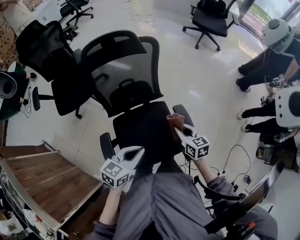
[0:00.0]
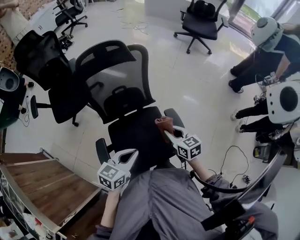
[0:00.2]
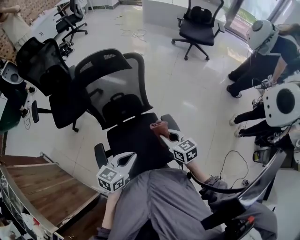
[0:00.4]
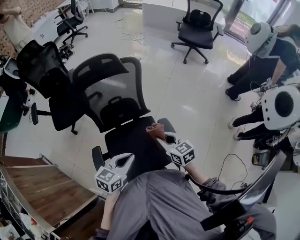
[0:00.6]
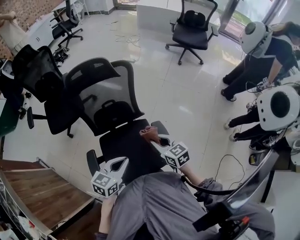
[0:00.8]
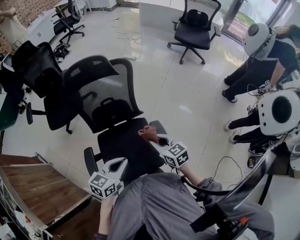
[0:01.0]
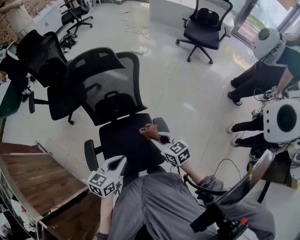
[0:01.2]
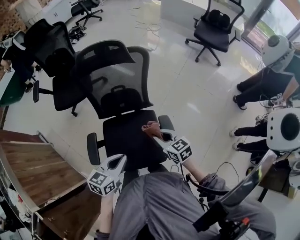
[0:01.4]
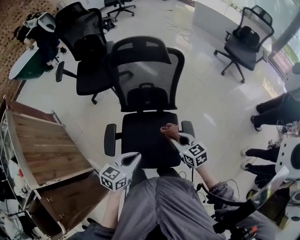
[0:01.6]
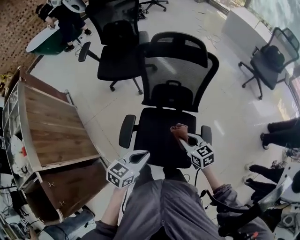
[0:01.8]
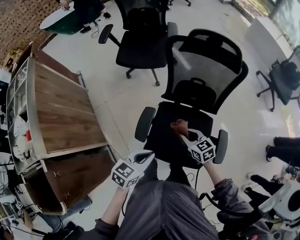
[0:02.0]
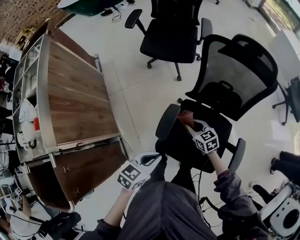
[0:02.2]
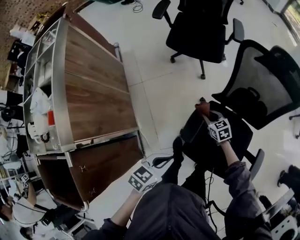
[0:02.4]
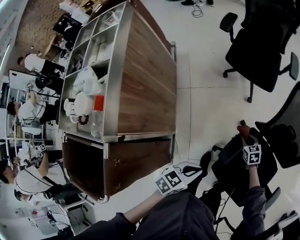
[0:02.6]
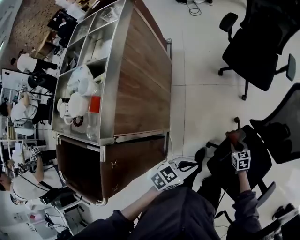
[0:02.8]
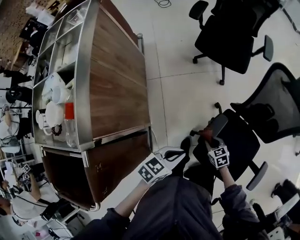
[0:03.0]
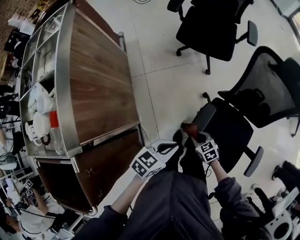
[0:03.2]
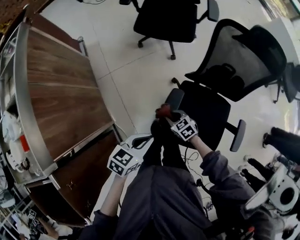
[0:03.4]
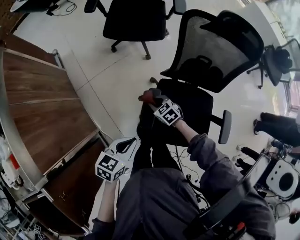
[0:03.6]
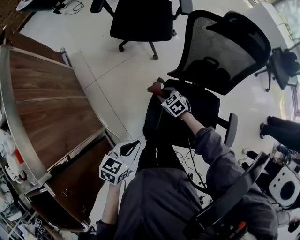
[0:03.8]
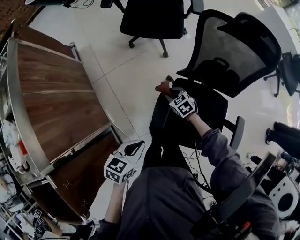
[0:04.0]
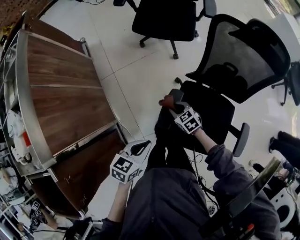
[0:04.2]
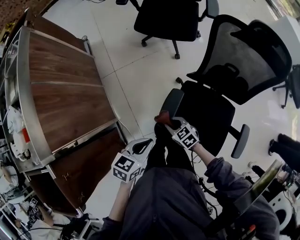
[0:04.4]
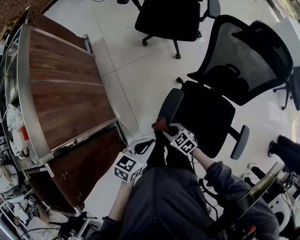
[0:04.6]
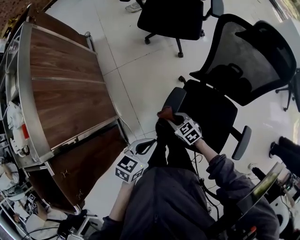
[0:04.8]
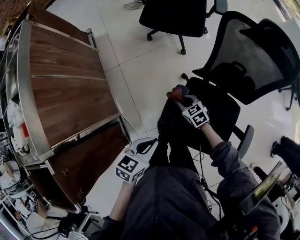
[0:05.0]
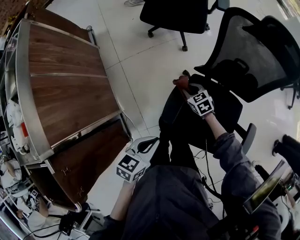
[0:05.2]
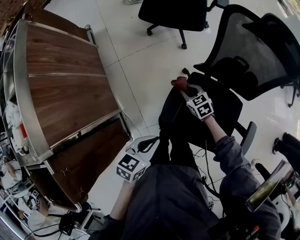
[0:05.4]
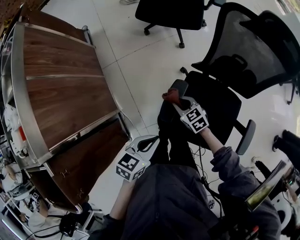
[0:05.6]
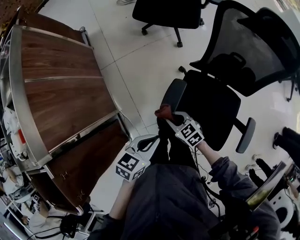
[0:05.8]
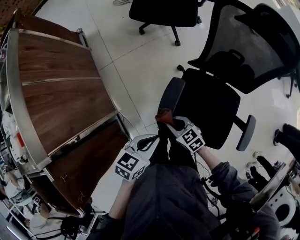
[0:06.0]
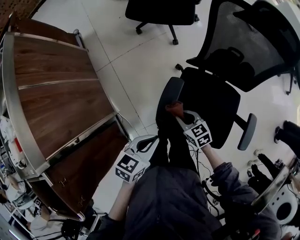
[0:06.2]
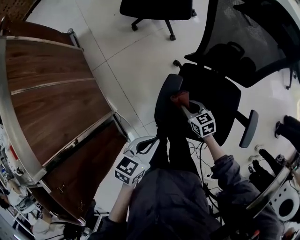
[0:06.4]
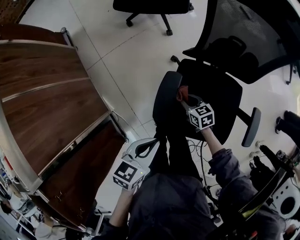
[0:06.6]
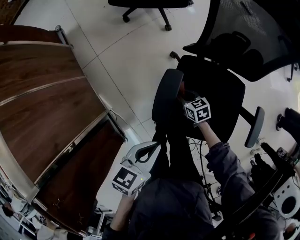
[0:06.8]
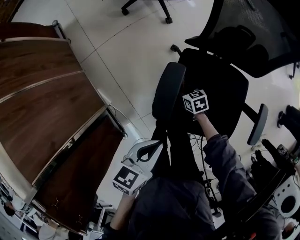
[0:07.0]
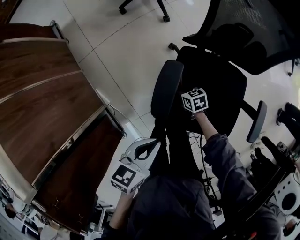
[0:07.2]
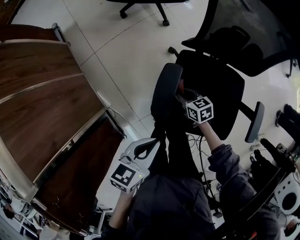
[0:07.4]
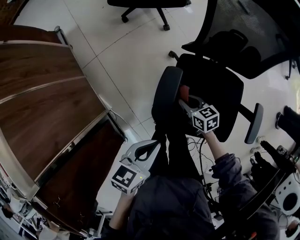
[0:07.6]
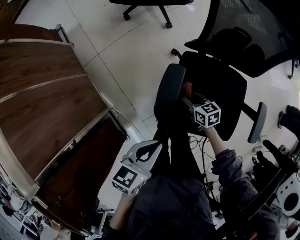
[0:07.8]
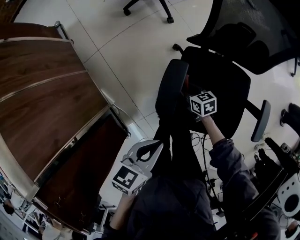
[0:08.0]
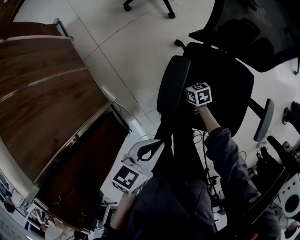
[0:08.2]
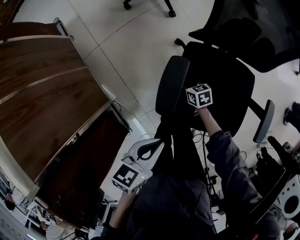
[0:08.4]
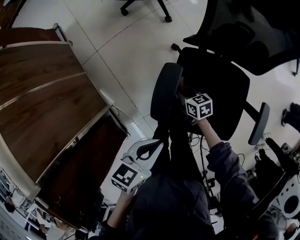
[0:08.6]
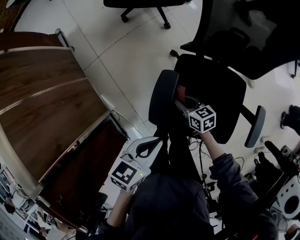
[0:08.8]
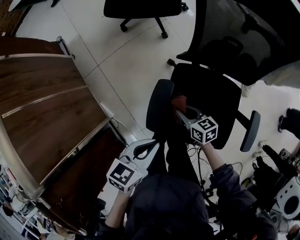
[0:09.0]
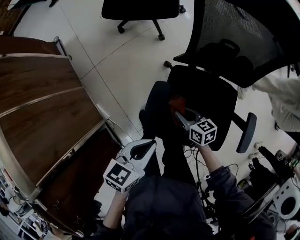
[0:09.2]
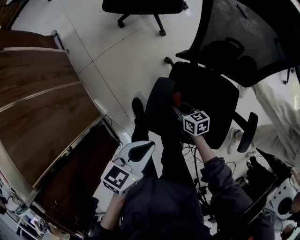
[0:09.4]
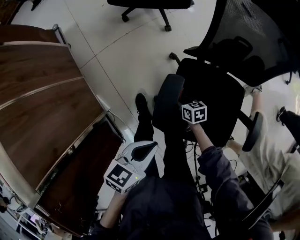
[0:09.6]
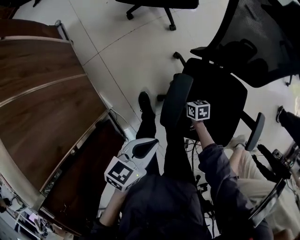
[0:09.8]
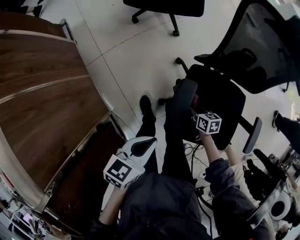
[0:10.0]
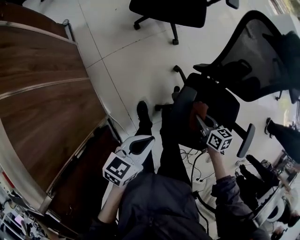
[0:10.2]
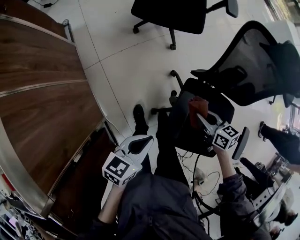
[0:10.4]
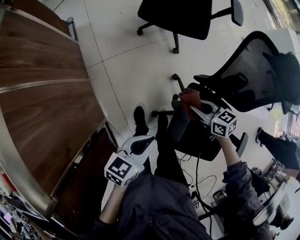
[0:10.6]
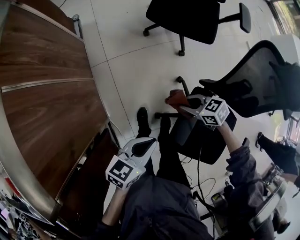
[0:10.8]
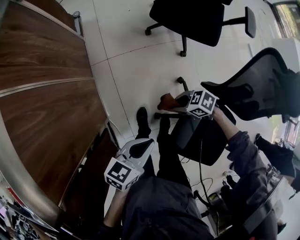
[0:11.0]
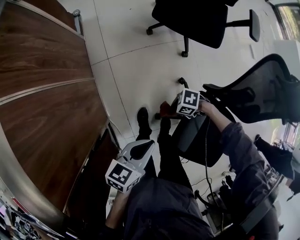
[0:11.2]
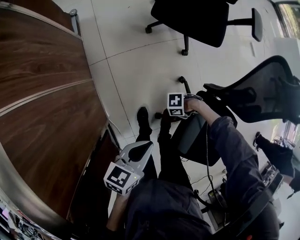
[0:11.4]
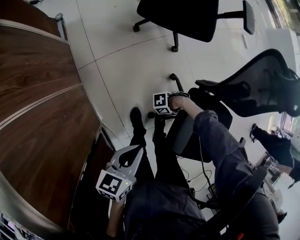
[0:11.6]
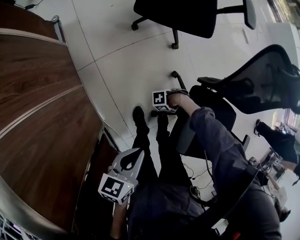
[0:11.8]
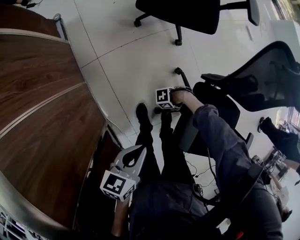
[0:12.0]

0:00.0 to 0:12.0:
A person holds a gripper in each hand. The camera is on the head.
0:00.0 to 0:01.6: The left gripper swivels some 20 degrees, while the right gripper turns by some 30 degrees.
0:01.6 to 0:03.0: The right gripper shifts by roughly 50 cm, and turns by some 40 degrees. Meanwhile the left gripper moves roughly 40 cm, and changes its angle by roughly 20 degrees.
0:03.0 to 0:04.4: The left gripper heads to the right, covering approximately 5 cm, while the right gripper moves roughly 15 cm forward and comes back.
0:06.0 to 0:07.6: The right gripper travels downward, to the right and forward by some 15 cm, and swivels some 30 degrees.
0:07.6 to 0:09.0: The left gripper moves about 5 cm. The right gripper goes downward and returns, some 15 cm each way.
0:09.0 to 0:10.4: The right gripper goes approximately 10 cm upward, forward and to the left; the left gripper shifts roughly 15 cm to the left.
0:10.4 to 0:12.0: The left gripper moves some 10 cm, while the right gripper shifts about 30 cm downward, and turns by approximately 110 degrees.

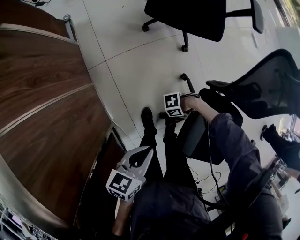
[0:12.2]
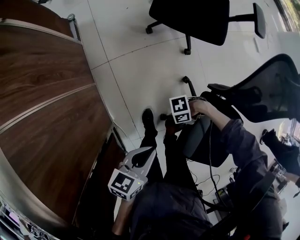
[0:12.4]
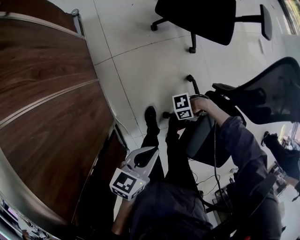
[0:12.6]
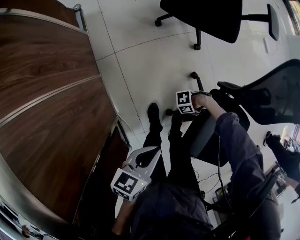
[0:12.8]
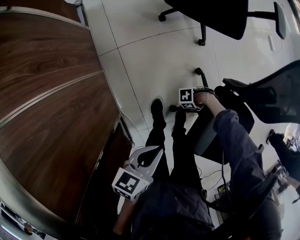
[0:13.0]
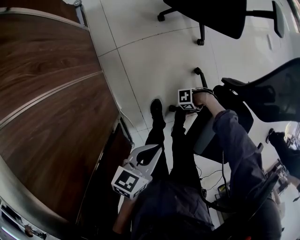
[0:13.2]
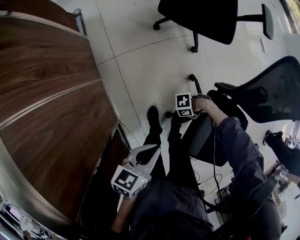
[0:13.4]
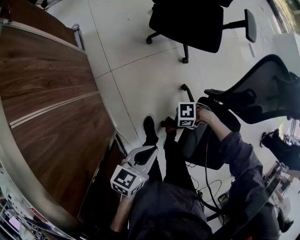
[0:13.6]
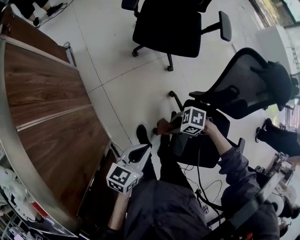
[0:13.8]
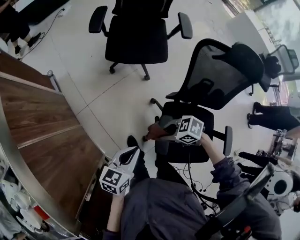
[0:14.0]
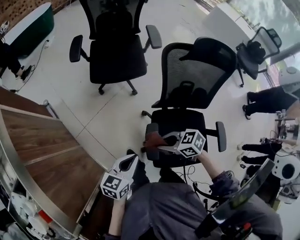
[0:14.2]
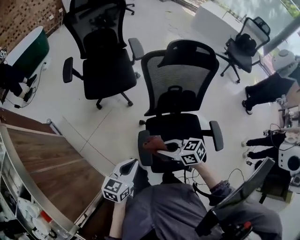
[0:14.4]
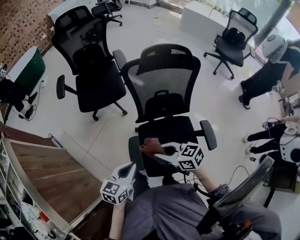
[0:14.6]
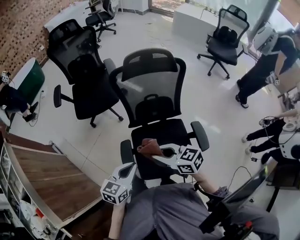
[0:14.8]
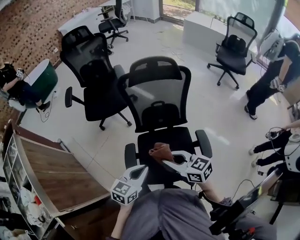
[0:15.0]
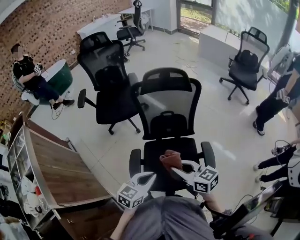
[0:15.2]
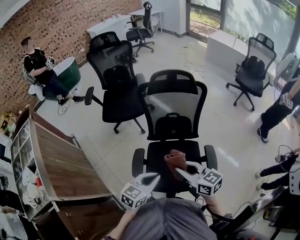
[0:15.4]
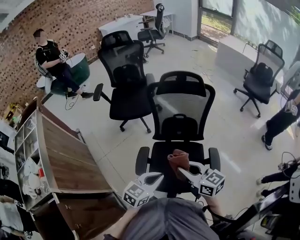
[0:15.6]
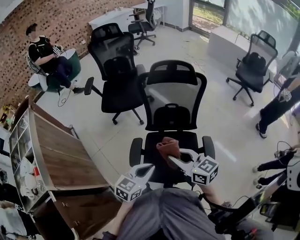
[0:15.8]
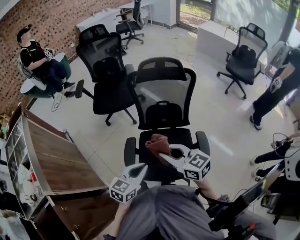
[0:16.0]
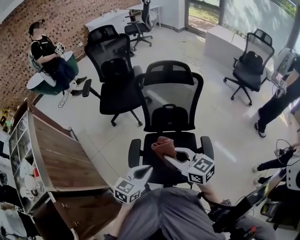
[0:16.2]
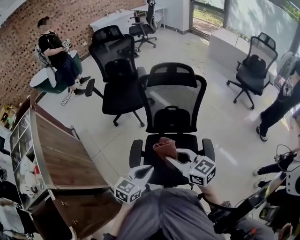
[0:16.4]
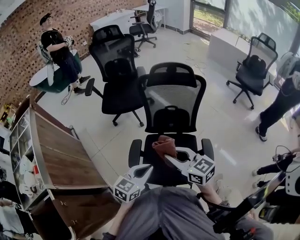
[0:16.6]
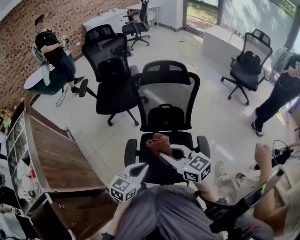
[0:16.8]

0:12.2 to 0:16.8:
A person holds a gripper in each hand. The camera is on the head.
0:12.2 to 0:13.8: The right gripper goes up and down, about 30 cm each way, reversing 2 times, and rotates roughly 40 degrees. Meanwhile the left gripper heads upward, covering about 5 cm.
0:13.8 to 0:15.2: The two grippers travel together, roughly 40 cm. The right gripper tips its fingers upward by approximately 30 degrees. The left gripper changes its angle by roughly 30 degrees.
0:15.2 to 0:16.8: The right gripper shifts about 5 cm upward.

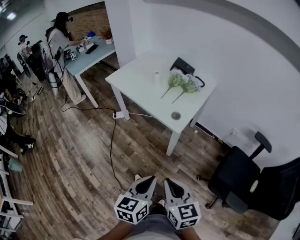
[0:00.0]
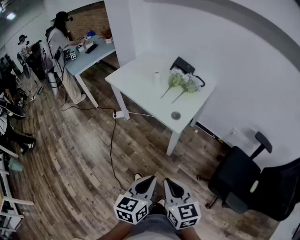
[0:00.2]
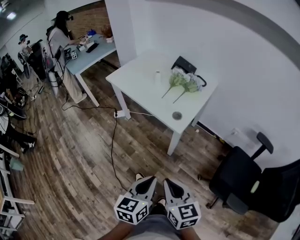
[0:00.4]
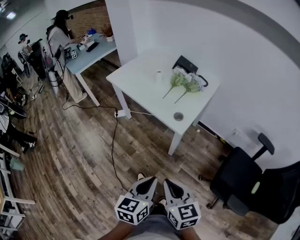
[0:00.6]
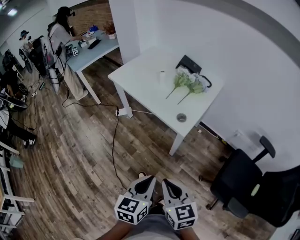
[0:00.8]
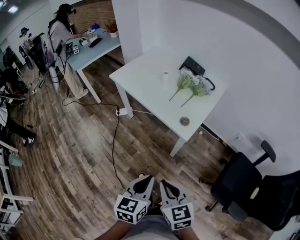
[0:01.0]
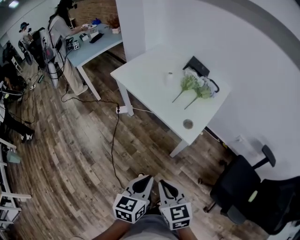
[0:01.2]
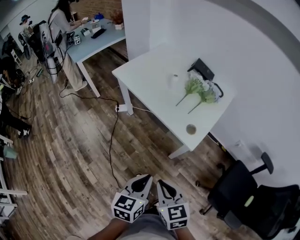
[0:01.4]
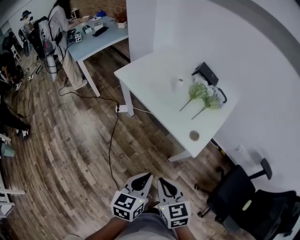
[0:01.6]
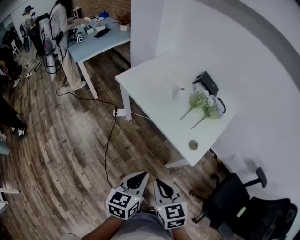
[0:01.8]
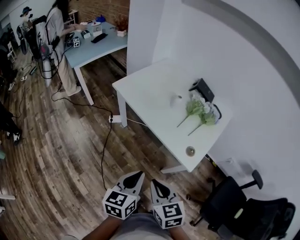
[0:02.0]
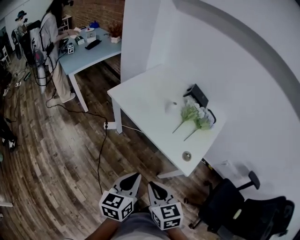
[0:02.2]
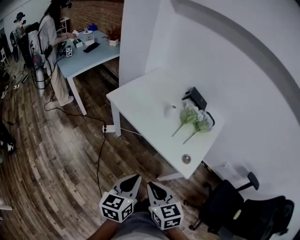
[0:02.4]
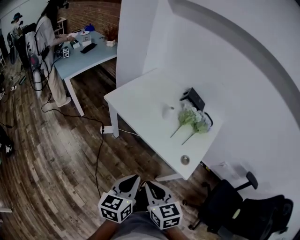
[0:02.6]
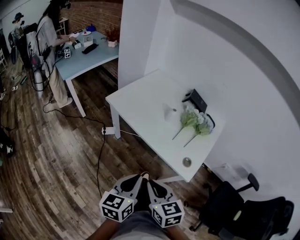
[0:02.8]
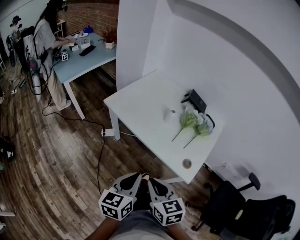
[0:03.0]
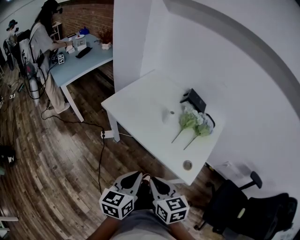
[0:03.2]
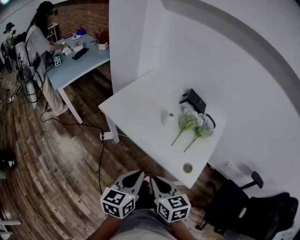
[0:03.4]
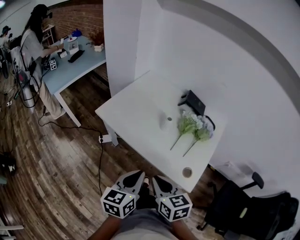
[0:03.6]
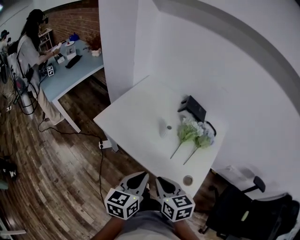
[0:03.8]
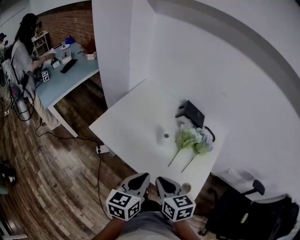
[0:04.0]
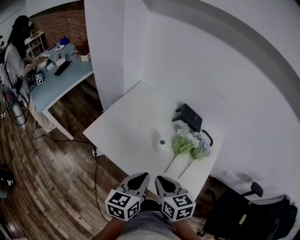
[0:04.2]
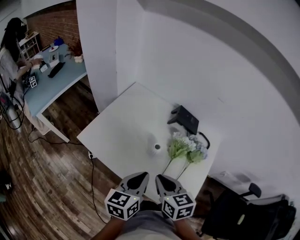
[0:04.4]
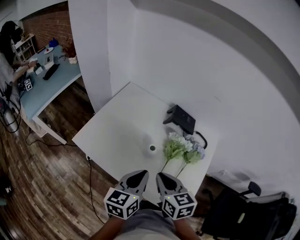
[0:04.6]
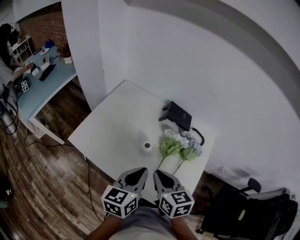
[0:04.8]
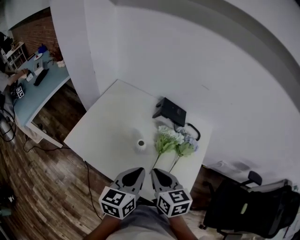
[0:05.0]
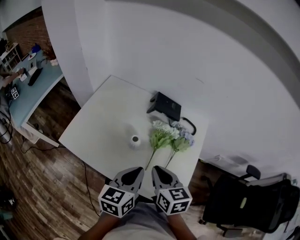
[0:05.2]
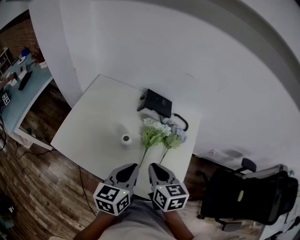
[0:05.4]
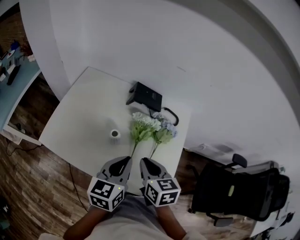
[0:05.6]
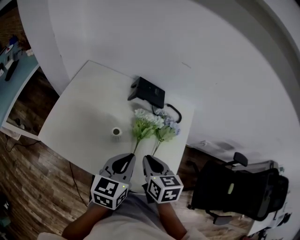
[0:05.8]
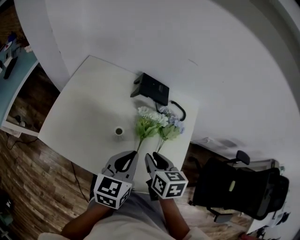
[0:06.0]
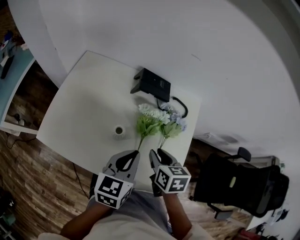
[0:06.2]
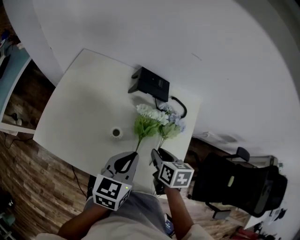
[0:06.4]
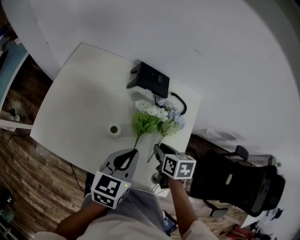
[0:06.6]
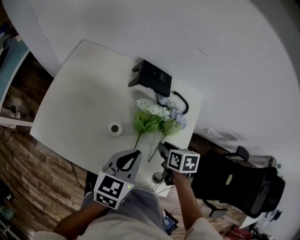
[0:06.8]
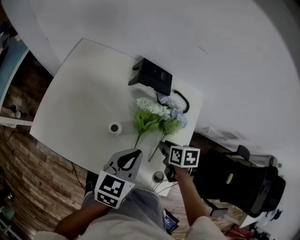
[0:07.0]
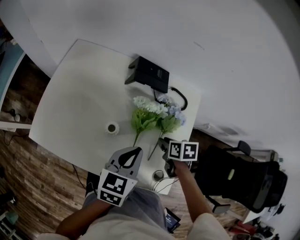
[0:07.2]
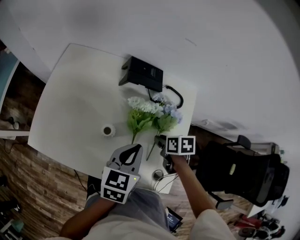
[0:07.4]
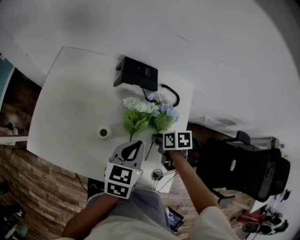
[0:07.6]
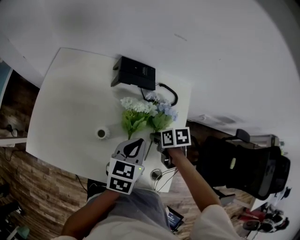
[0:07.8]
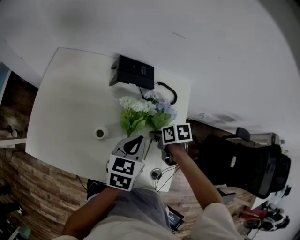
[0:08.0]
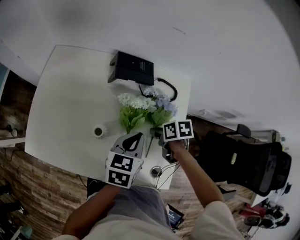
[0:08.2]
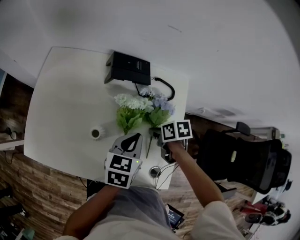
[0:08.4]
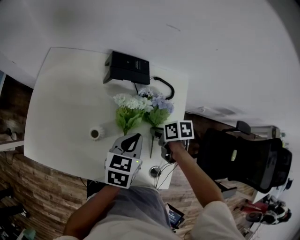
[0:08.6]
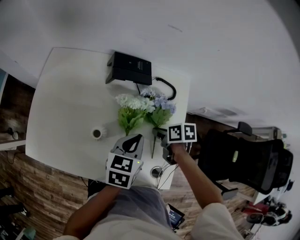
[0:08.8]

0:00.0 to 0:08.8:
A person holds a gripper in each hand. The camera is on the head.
0:00.0 to 0:01.4: The grippers both shift forward and to the left by approximately 15 cm.
0:01.4 to 0:03.0: Both grippers move forward and to the left, roughly 20 cm.
0:03.0 to 0:04.4: Both grippers move forward, some 25 cm.
0:04.4 to 0:05.8: The right gripper shifts some 10 cm to the right, and turns by about 20 degrees. The left gripper heads to the right and forward, covering roughly 10 cm.
0:05.8 to 0:07.4: The right gripper heads downward, to the right and forward, covering approximately 20 cm, changes its angle by some 30 degrees, and opens its fingers, while the left gripper moves downward, roughly 5 cm.
0:07.4 to 0:08.8: The right gripper closes. The left gripper ends up roughly 5 cm from where it was.
